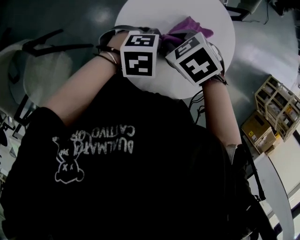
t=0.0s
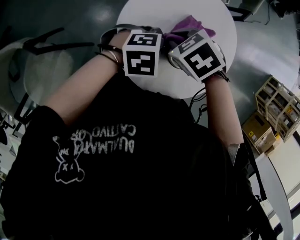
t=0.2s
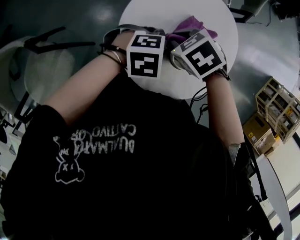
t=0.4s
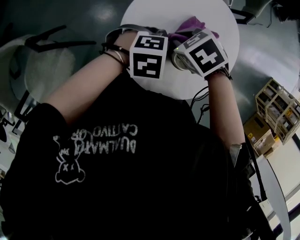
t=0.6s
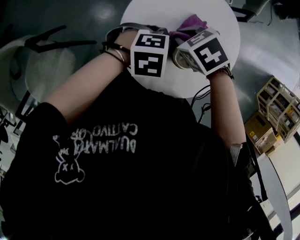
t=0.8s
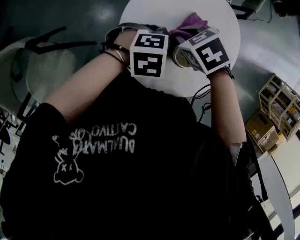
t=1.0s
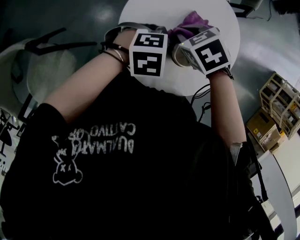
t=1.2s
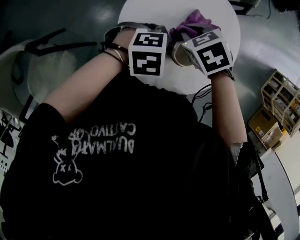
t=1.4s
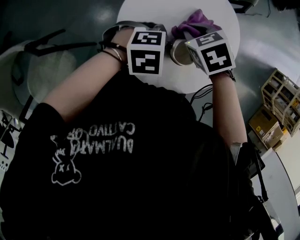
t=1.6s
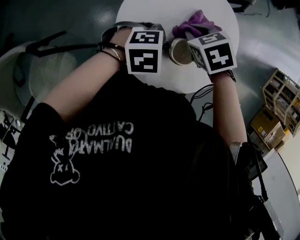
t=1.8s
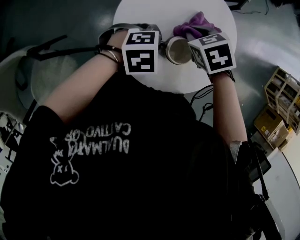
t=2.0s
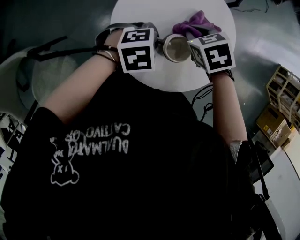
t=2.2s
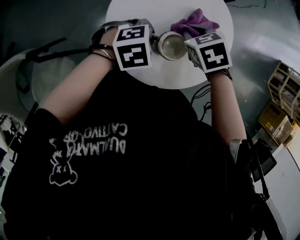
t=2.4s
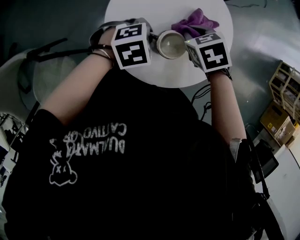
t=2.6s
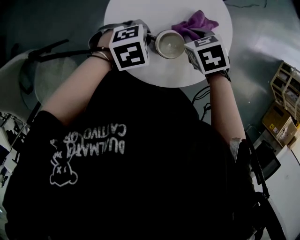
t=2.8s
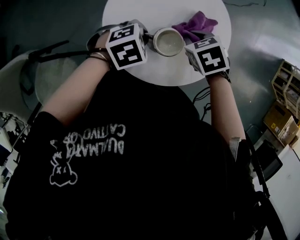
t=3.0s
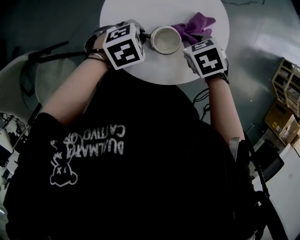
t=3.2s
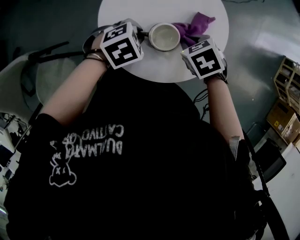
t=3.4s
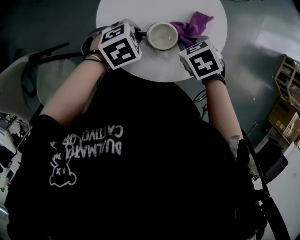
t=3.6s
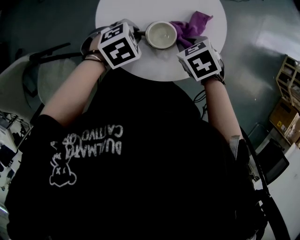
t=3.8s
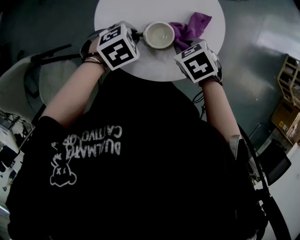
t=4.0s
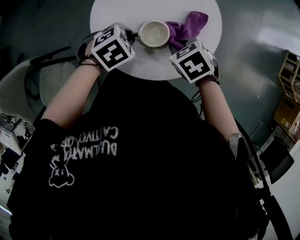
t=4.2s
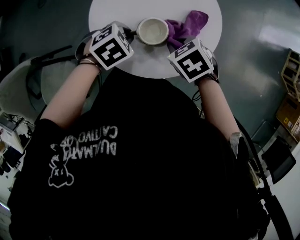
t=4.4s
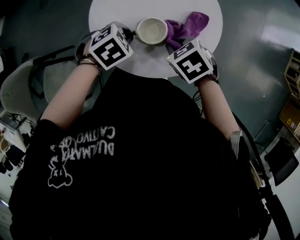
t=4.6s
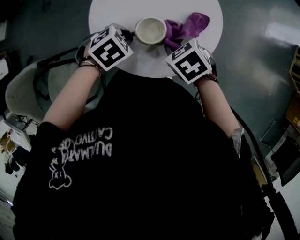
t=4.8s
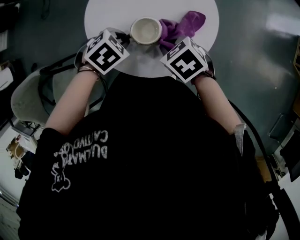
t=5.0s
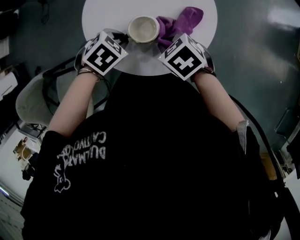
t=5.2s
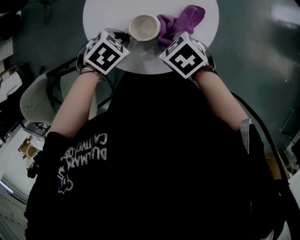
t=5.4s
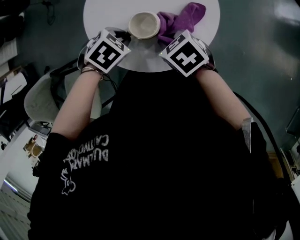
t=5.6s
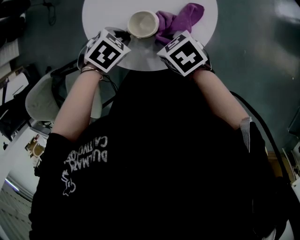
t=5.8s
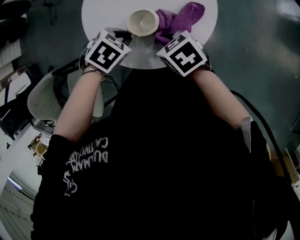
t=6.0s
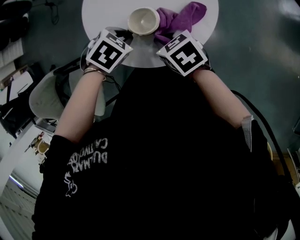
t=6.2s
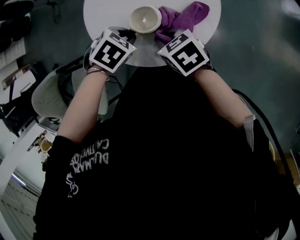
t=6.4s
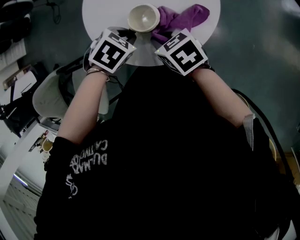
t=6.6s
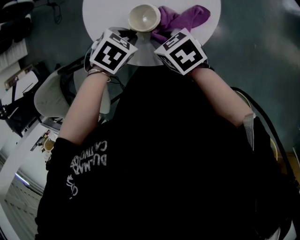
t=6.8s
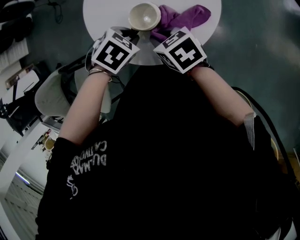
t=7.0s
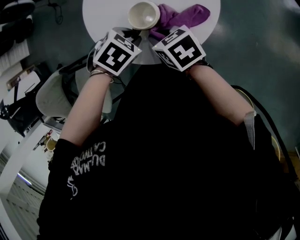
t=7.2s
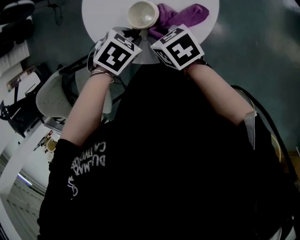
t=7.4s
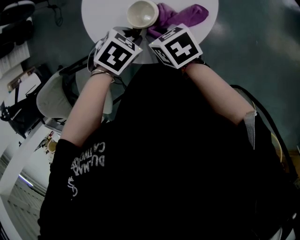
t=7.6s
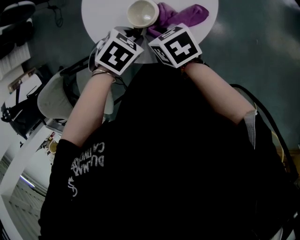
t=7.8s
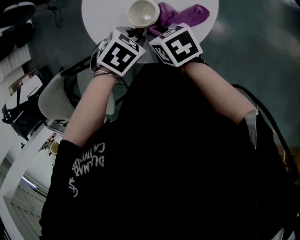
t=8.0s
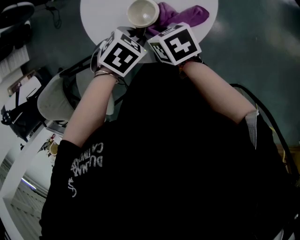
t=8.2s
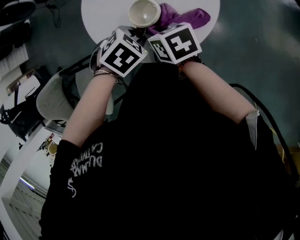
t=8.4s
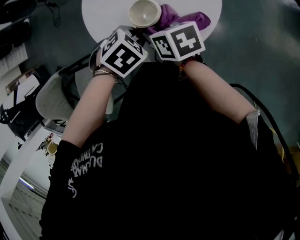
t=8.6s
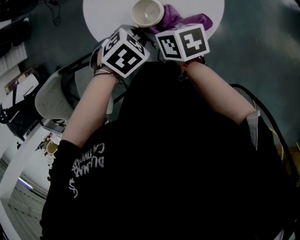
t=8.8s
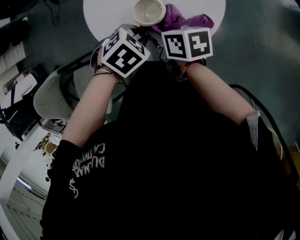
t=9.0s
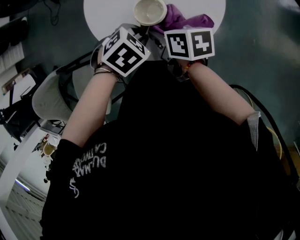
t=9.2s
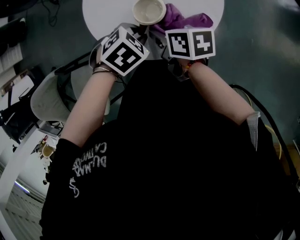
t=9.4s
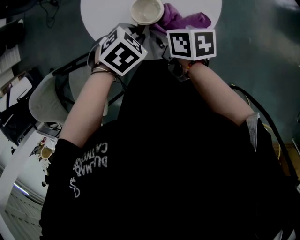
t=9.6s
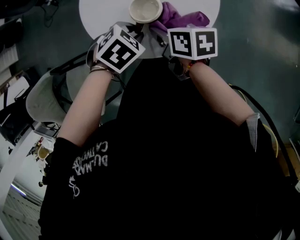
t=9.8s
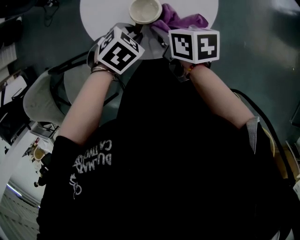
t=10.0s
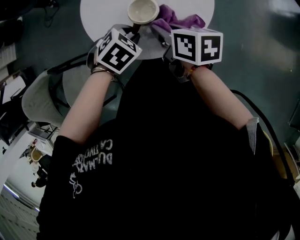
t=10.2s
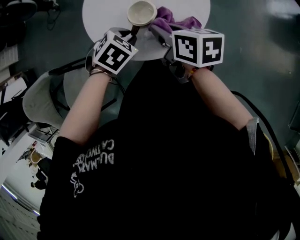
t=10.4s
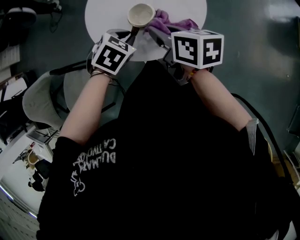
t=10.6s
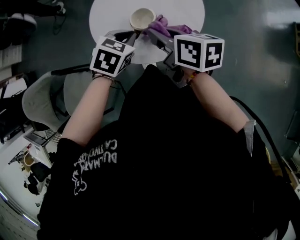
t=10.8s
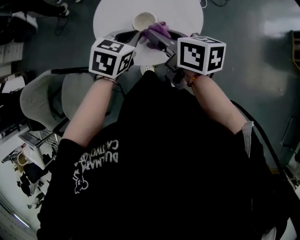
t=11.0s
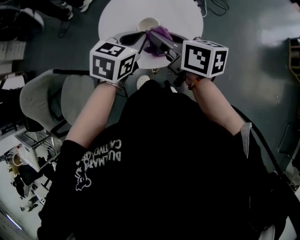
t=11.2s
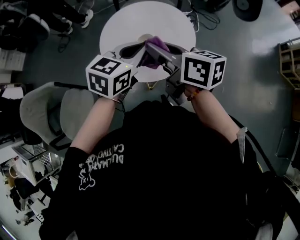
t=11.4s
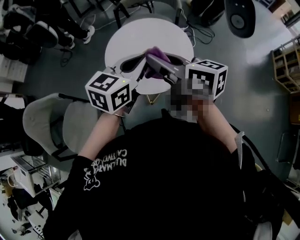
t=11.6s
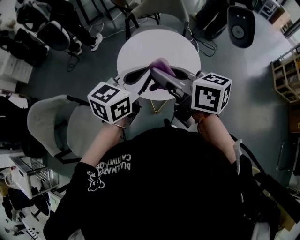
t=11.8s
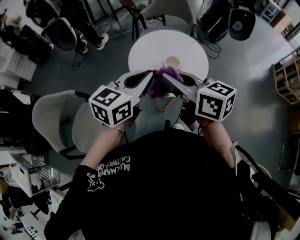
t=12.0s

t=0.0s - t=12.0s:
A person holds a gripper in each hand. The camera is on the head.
t=0.0s - t=1.6s: The right gripper changes place by some 5 cm.
t=1.6s - t=3.0s: The right gripper shifts by approximately 10 cm.
t=3.0s - t=4.4s: The right gripper shifts roughly 5 cm backward.
t=4.4s - t=6.0s: The left gripper ends up roughly 5 cm from where it was. The right gripper ends up some 5 cm from where it was, and turns by roughly 20 degrees.
t=6.0s - t=7.6s: The grippers stay close to where they were, moving slightly.
t=7.6s - t=9.0s: The right gripper swivels about 30 degrees.
t=9.0s - t=10.4s: The right gripper travels upward by about 5 cm.
t=10.4s - t=12.0s: The left gripper heads upward, covering roughly 30 cm, and angles its fingers upward, by about 60 degrees. The right gripper heads upward, to the left and backward, covering about 30 cm, and rotates approximately 30 degrees.

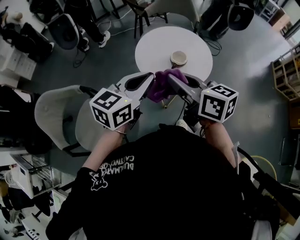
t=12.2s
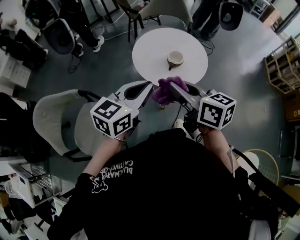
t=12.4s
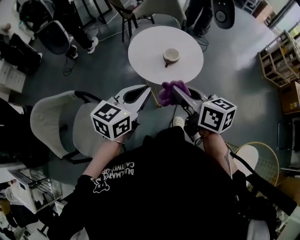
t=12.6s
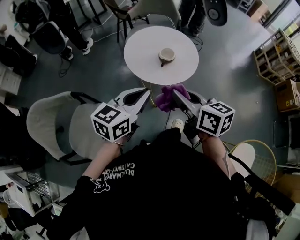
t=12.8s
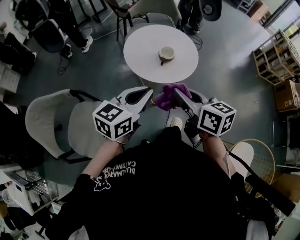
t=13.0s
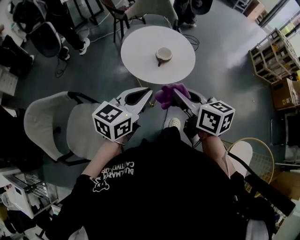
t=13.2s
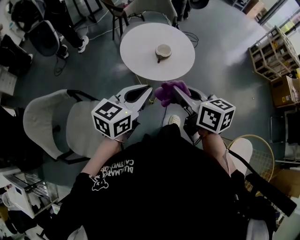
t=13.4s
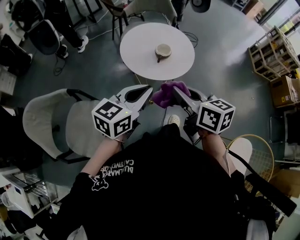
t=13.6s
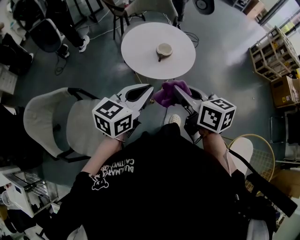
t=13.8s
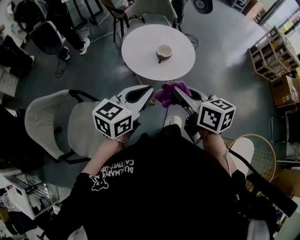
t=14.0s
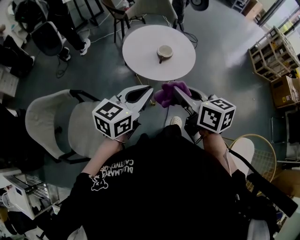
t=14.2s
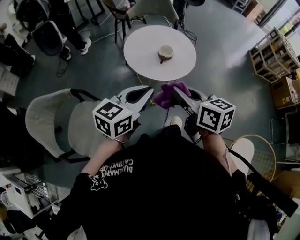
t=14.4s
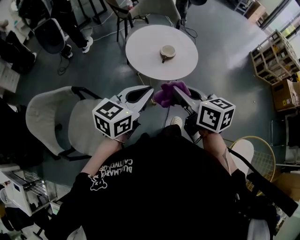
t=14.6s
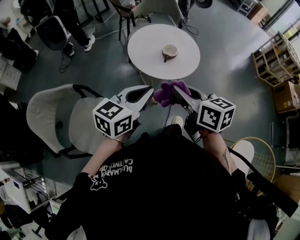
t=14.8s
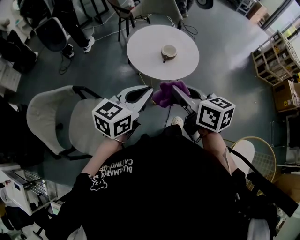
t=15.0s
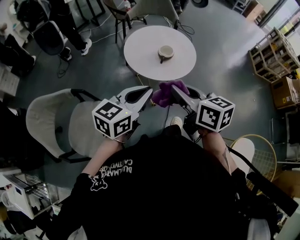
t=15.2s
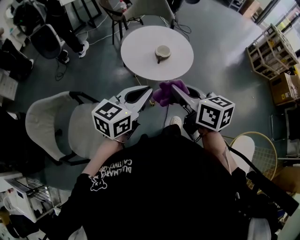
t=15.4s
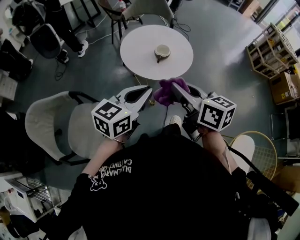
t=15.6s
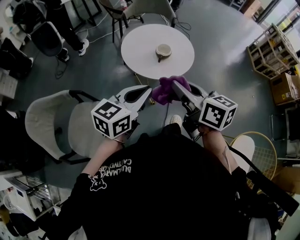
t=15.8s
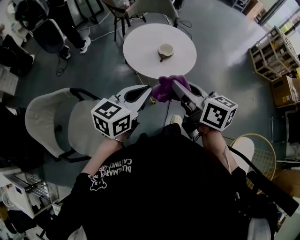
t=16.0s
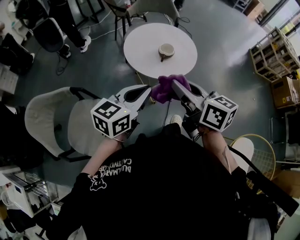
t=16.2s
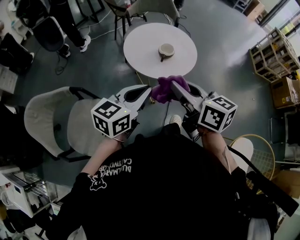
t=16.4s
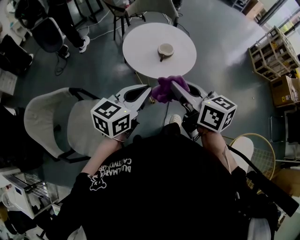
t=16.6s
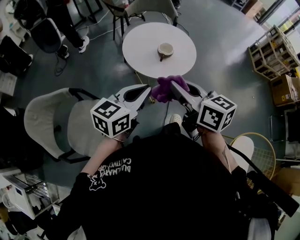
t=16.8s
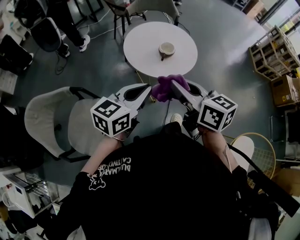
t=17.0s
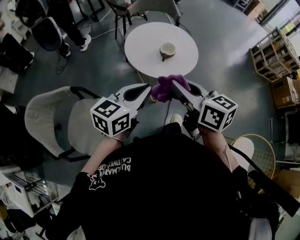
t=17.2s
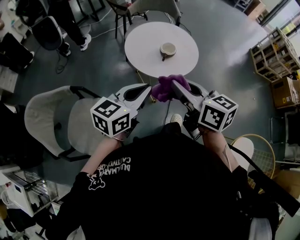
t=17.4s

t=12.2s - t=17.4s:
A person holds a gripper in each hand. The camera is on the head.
t=12.2s - t=14.0s: Both grippers move backward, approximately 10 cm.
t=14.0s - t=17.4s: The grippers move only a little.

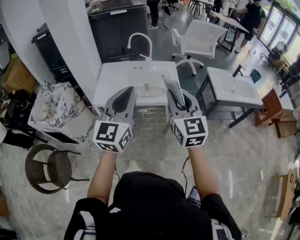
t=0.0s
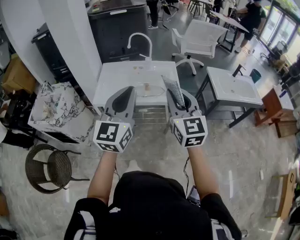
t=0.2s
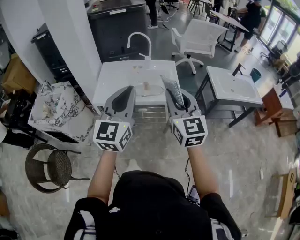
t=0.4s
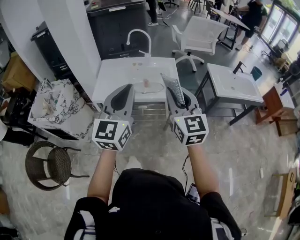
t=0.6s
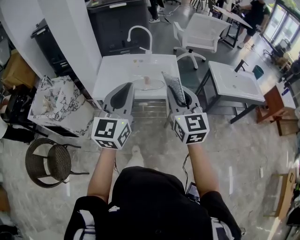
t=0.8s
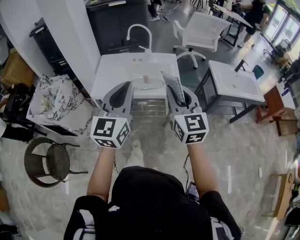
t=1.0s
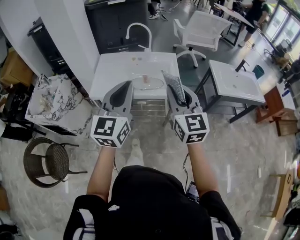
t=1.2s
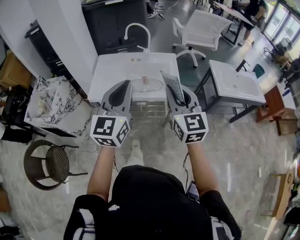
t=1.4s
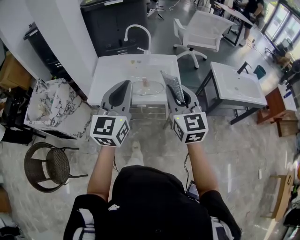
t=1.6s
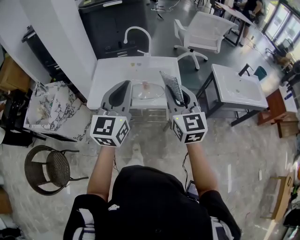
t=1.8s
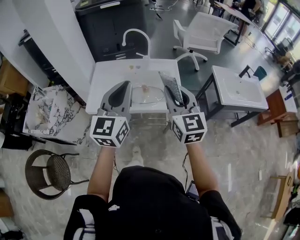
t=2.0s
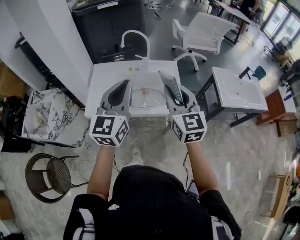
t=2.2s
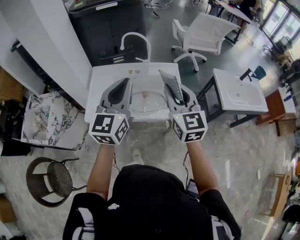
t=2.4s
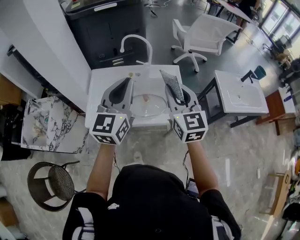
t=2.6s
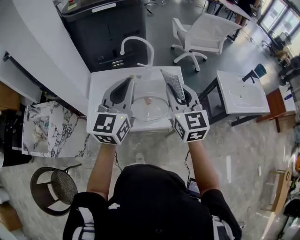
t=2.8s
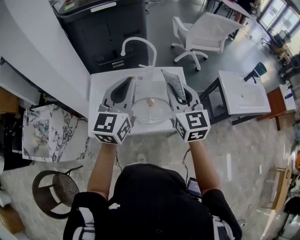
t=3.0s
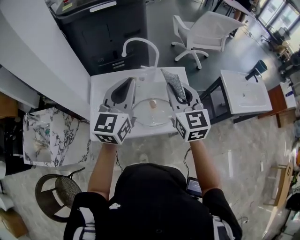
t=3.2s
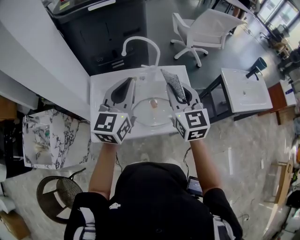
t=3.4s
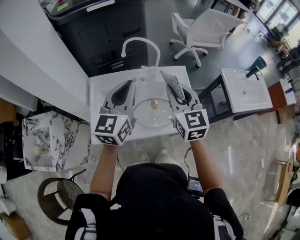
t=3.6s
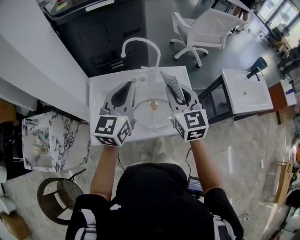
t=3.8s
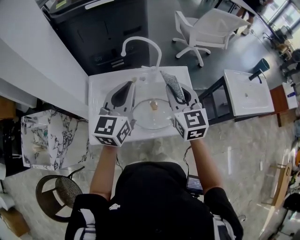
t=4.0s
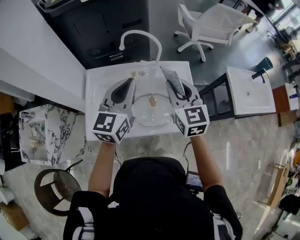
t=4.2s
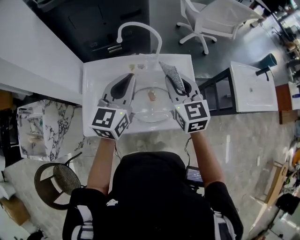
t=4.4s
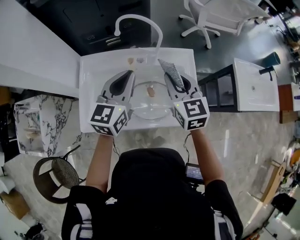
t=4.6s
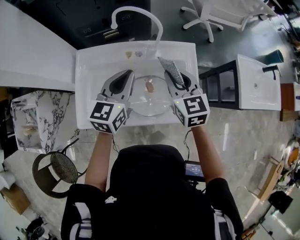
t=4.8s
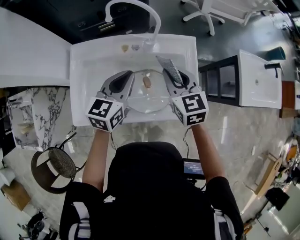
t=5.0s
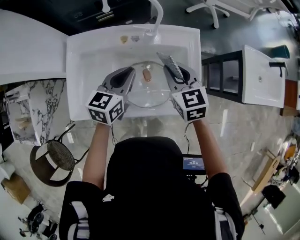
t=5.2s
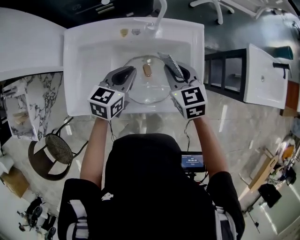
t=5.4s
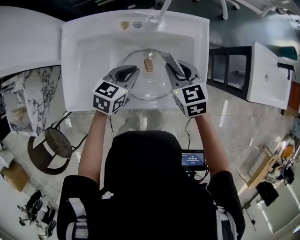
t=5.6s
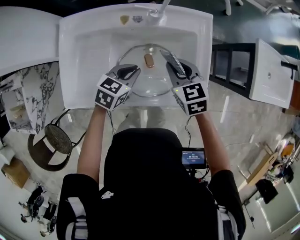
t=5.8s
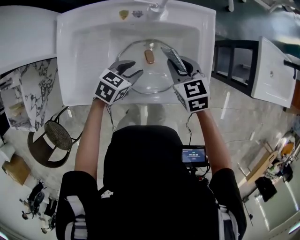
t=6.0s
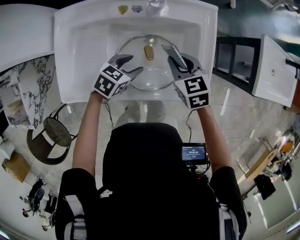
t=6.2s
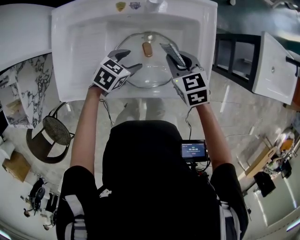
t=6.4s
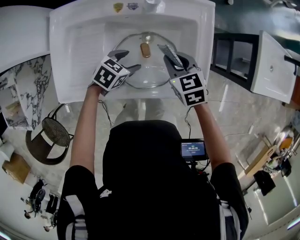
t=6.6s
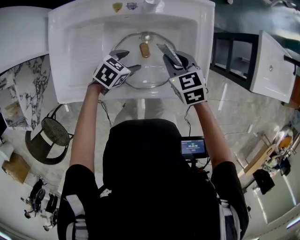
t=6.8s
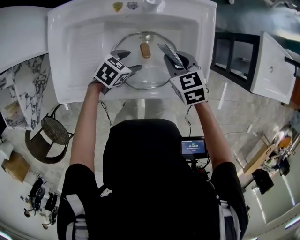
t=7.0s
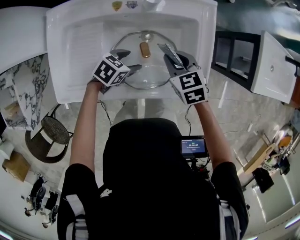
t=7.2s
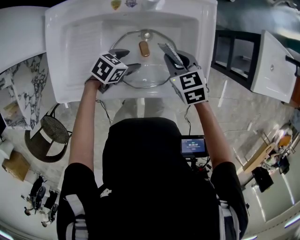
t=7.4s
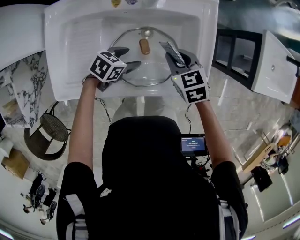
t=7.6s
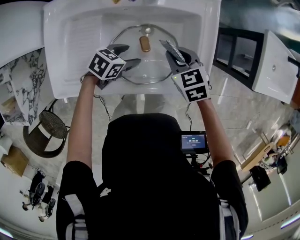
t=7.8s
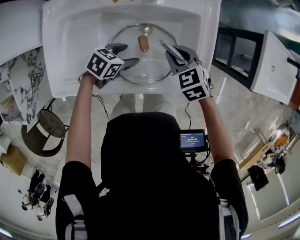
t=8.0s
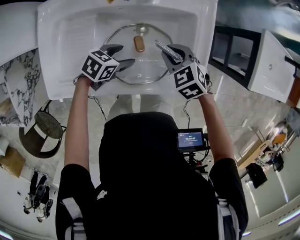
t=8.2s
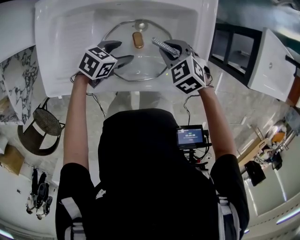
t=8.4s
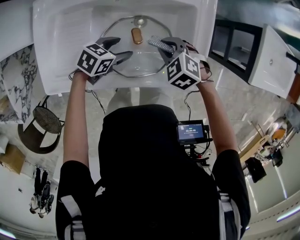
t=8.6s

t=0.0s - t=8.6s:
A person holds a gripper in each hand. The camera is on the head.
t=0.0s - t=1.4s: The grippers both shift forward by about 5 cm.
t=1.4s - t=2.8s: Both grippers travel together forward, roughly 25 cm.
t=2.8s - t=4.4s: The grippers both shift forward and downward by roughly 20 cm.
t=4.4s - t=5.8s: The two grippers go some 25 cm downward. The left gripper tips its fingers downward by approximately 40 degrees. Meanwhile the right gripper rotates approximately 30 degrees.
t=5.8s - t=7.2s: The grippers both shift downward by roughly 5 cm. The left gripper rotates some 20 degrees, and opens up.
t=7.2s - t=8.6s: The right gripper moves approximately 5 cm, and rotates some 40 degrees.
